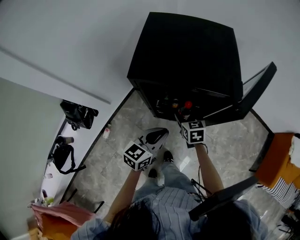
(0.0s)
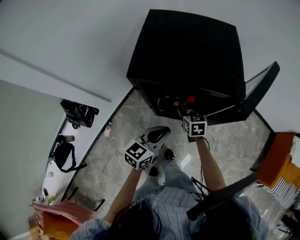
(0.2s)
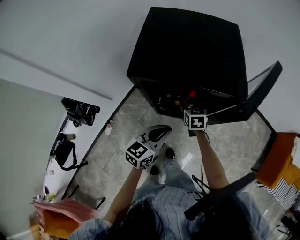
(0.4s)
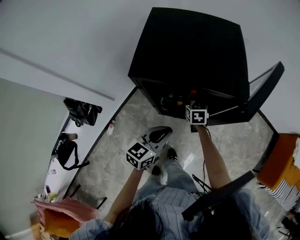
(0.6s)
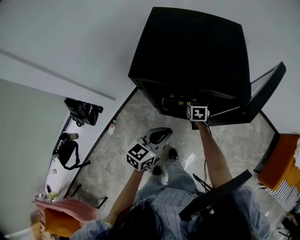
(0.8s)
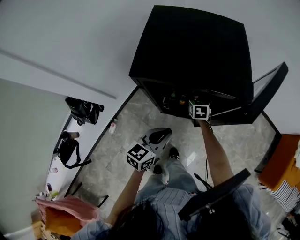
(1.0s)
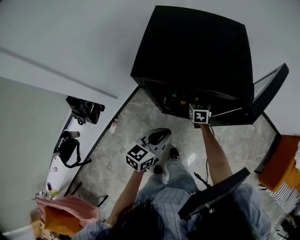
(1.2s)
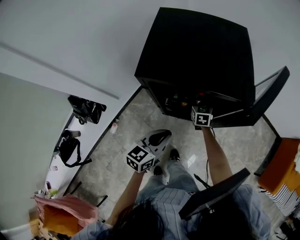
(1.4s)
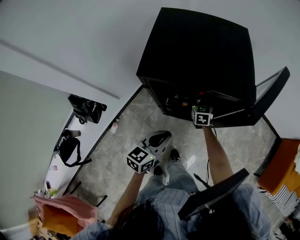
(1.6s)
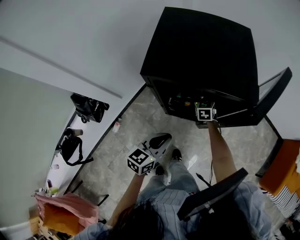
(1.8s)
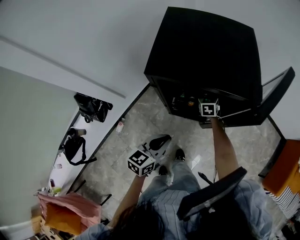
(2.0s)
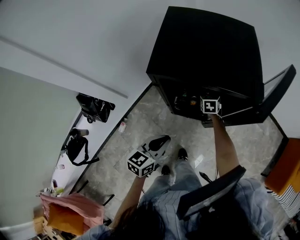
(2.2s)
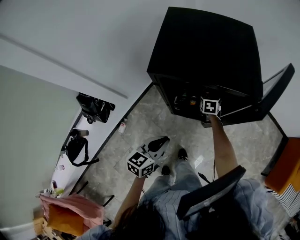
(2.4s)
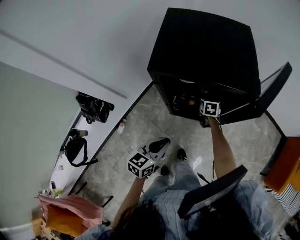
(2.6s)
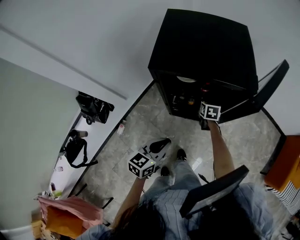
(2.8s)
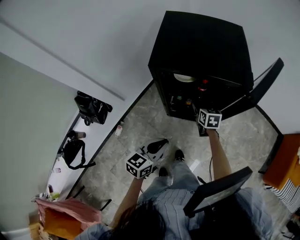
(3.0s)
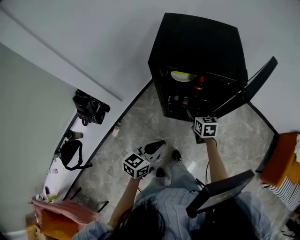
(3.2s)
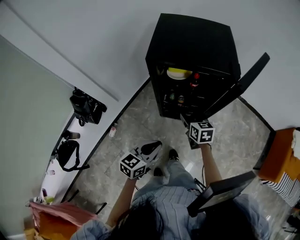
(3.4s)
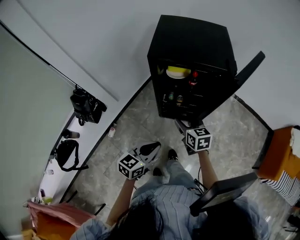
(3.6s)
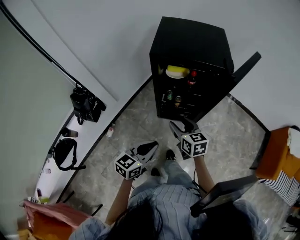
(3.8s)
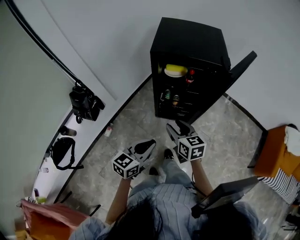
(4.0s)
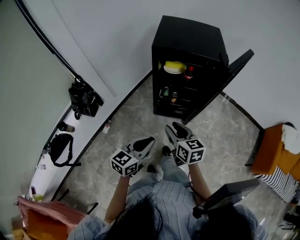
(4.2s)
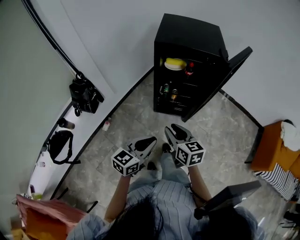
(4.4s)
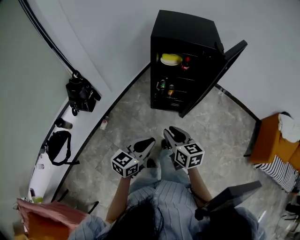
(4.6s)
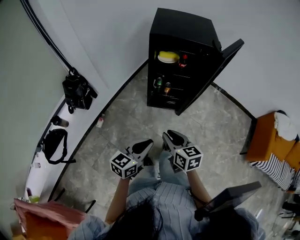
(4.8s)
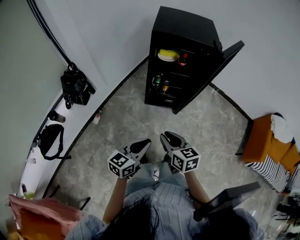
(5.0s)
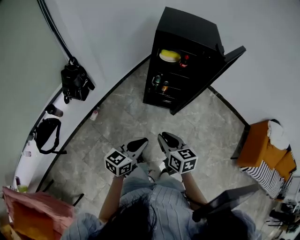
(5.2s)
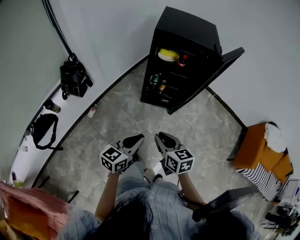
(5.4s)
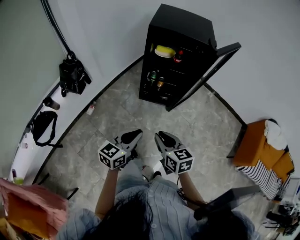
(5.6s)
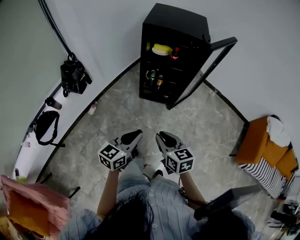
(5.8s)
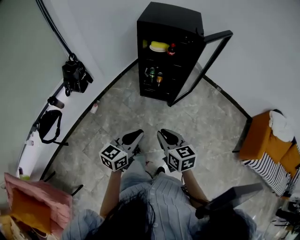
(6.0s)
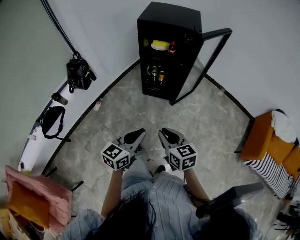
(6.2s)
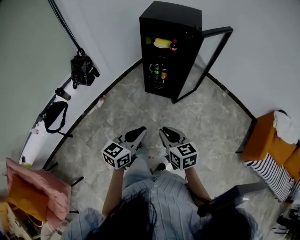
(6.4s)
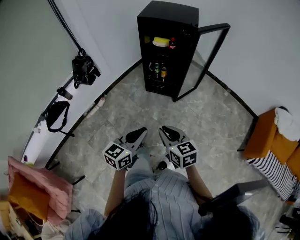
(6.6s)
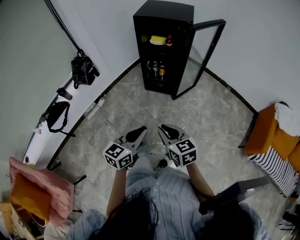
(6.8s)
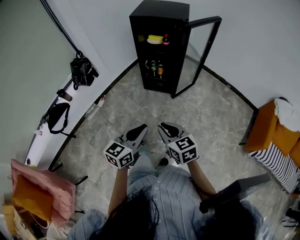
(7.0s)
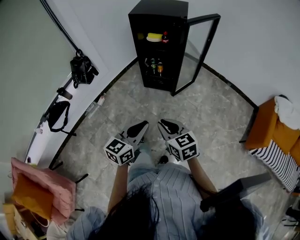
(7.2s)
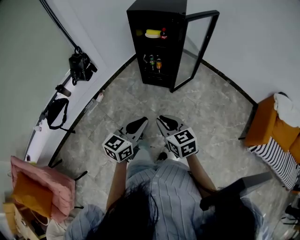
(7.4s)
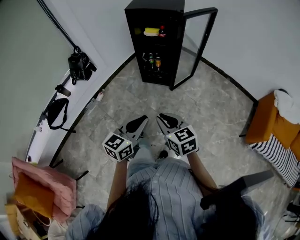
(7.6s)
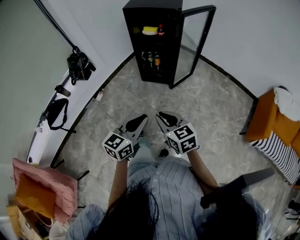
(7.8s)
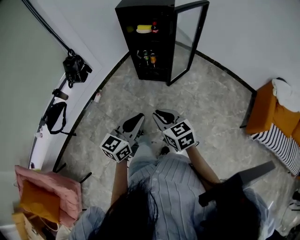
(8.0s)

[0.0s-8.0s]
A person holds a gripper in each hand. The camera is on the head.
0.0s to 1.6s: The right gripper is displaced forward and downward by some 15 cm.
1.6s to 3.2s: The left gripper moves backward, about 10 cm, while the right gripper moves backward and upward, roughly 15 cm.
3.2s to 4.8s: The left gripper is displaced backward by roughly 25 cm. The right gripper travels backward by about 40 cm, and closes its fingers.
4.8s to 6.4s: Both grippers move backward and to the right, about 20 cm.
6.4s to 8.0s: The two grippers go roughly 5 cm backward.

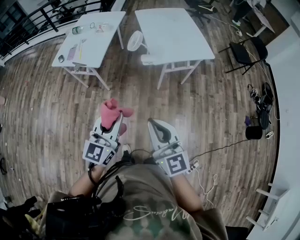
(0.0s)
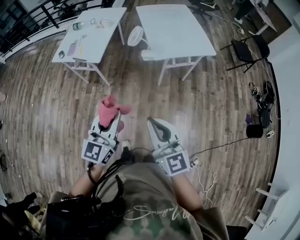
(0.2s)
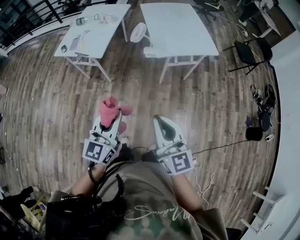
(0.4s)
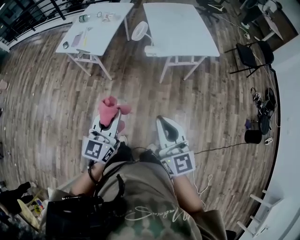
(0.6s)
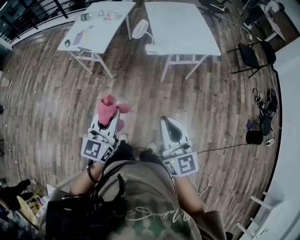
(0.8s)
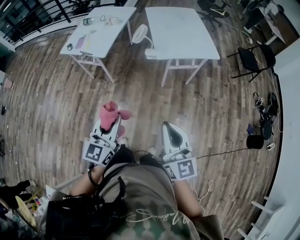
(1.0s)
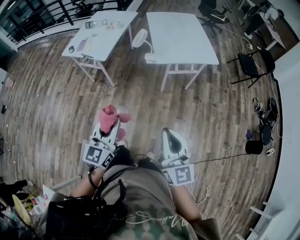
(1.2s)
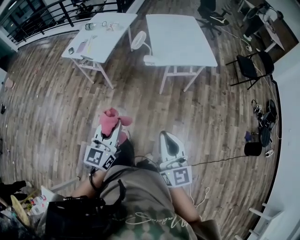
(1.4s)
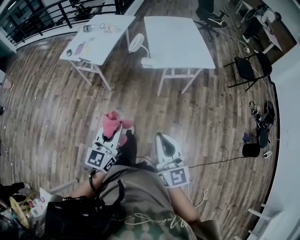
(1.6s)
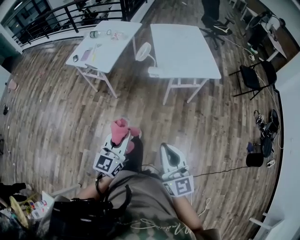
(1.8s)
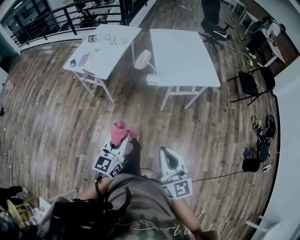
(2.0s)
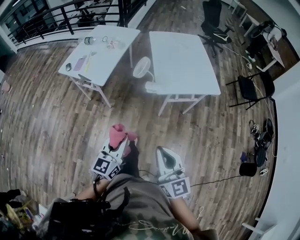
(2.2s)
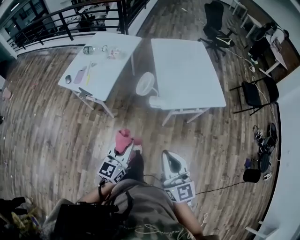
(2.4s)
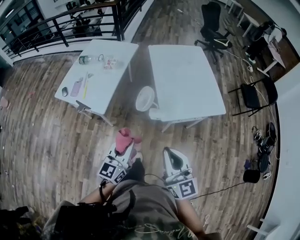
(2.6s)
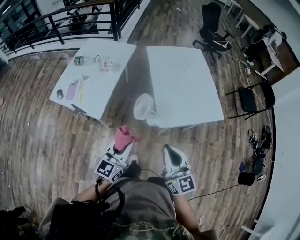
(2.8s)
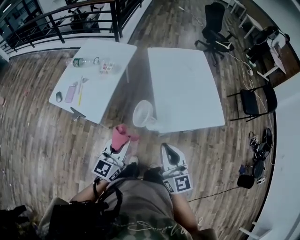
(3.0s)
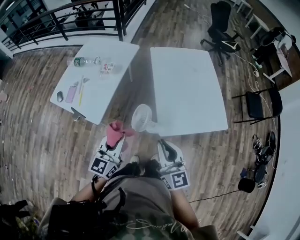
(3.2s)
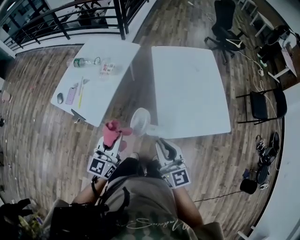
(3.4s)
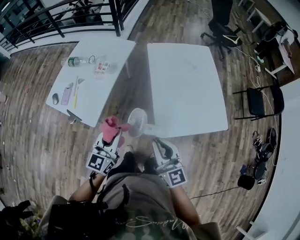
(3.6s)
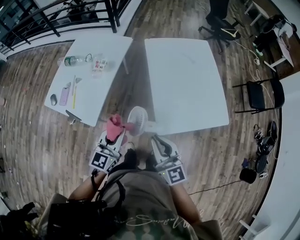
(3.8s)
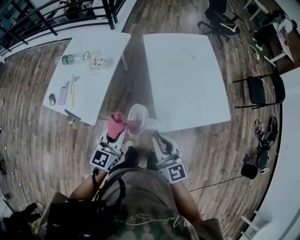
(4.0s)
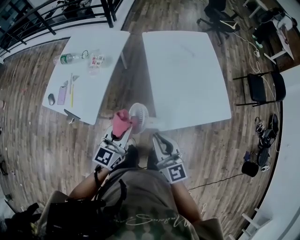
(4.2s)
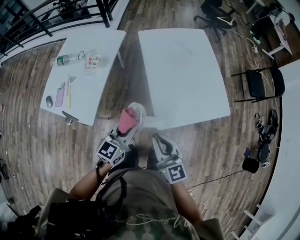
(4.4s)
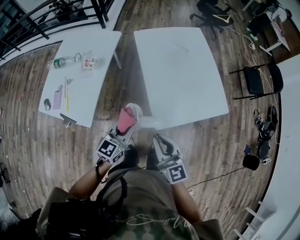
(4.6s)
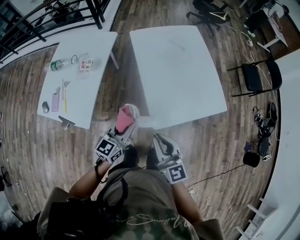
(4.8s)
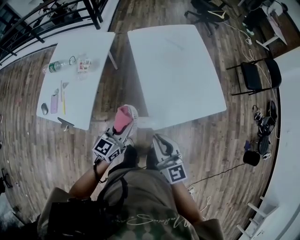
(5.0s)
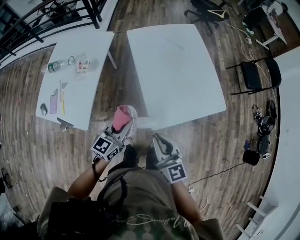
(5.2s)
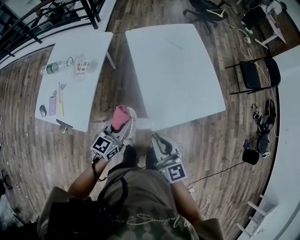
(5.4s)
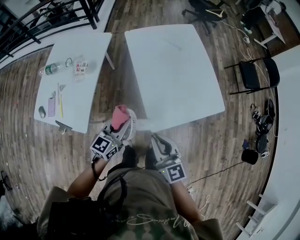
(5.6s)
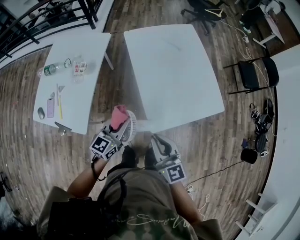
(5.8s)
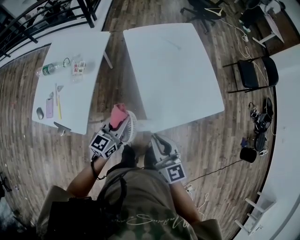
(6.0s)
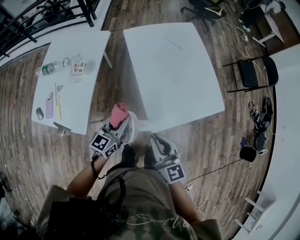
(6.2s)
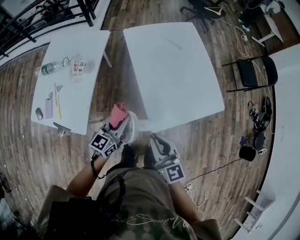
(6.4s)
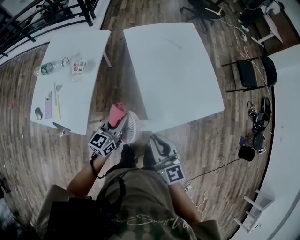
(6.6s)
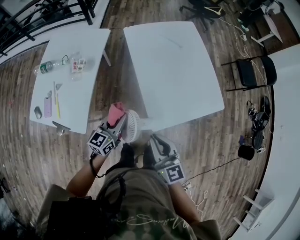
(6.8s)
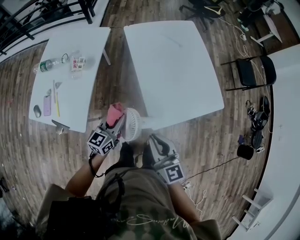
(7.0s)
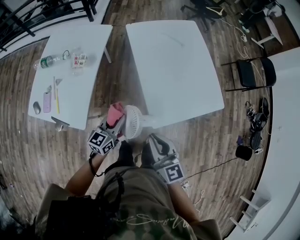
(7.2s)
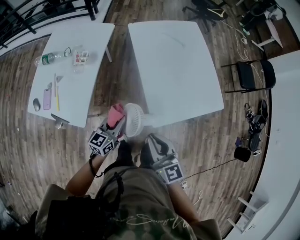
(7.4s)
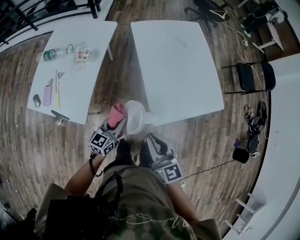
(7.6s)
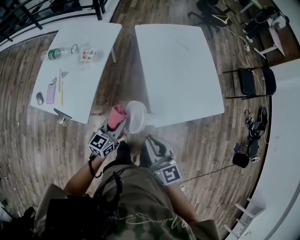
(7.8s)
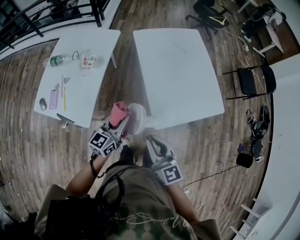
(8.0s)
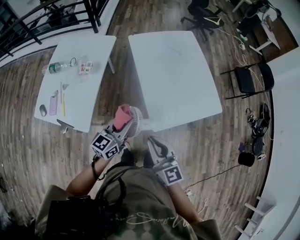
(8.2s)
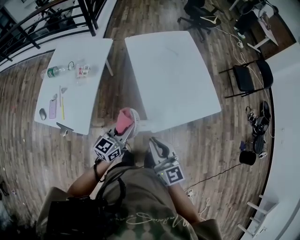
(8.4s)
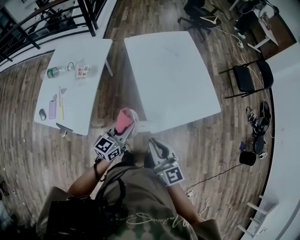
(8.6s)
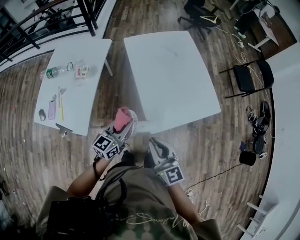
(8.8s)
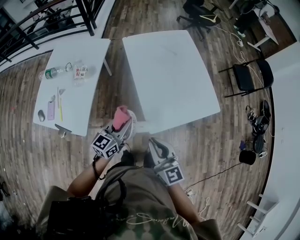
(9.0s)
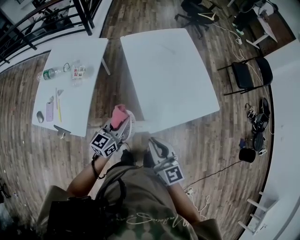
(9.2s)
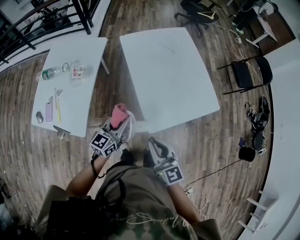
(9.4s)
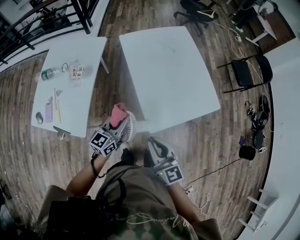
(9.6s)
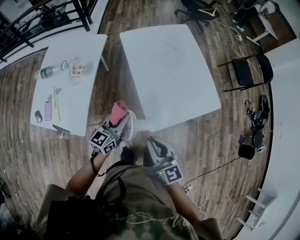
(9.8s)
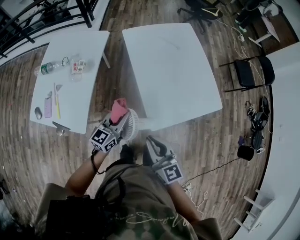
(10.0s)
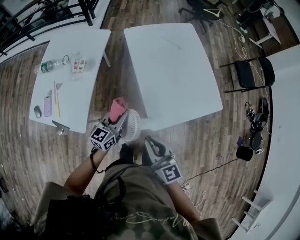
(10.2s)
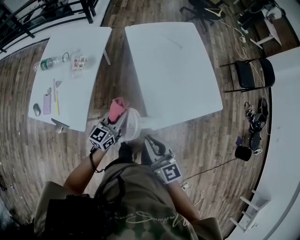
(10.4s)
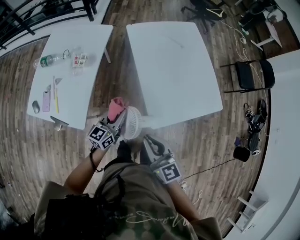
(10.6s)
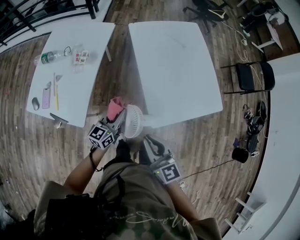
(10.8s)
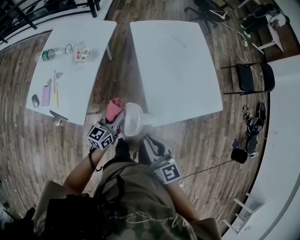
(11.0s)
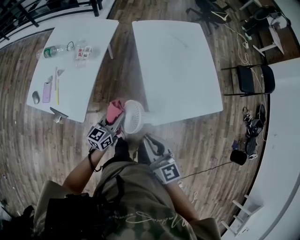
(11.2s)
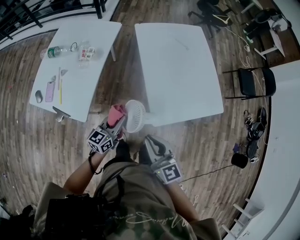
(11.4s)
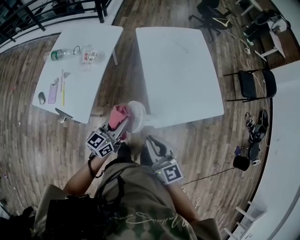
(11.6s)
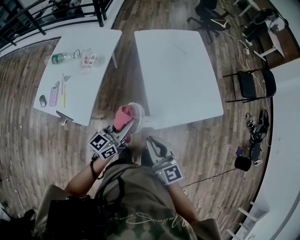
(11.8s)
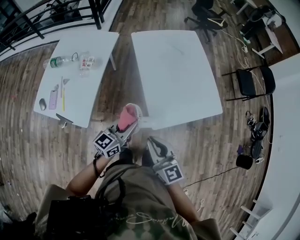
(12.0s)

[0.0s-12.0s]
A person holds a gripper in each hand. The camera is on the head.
0.0s to 1.6s: The right gripper travels to the right and backward by roughly 15 cm, while the left gripper shifts some 10 cm backward and to the right.
1.6s to 3.0s: The two grippers travel together, forward, roughly 40 cm.
3.0s to 4.4s: The left gripper is displaced forward, to the right and downward by roughly 15 cm; the right gripper goes about 10 cm forward and downward.
4.4s to 6.0s: The left gripper shifts about 5 cm forward.
6.0s to 7.6s: The left gripper moves downward and backward, about 10 cm; the right gripper is displaced to the left by some 5 cm.
7.6s to 9.0s: The left gripper travels upward and to the right by roughly 10 cm.
9.0s to 10.4s: The left gripper moves approximately 5 cm.
10.4s to 12.0s: The left gripper heads backward and upward, covering roughly 10 cm.

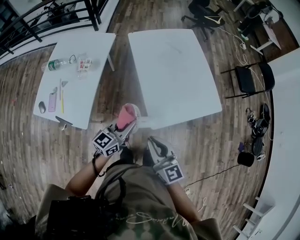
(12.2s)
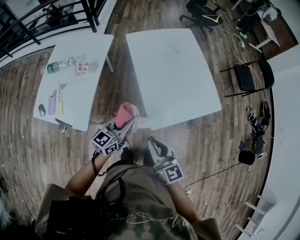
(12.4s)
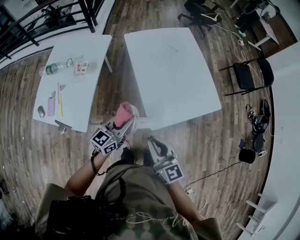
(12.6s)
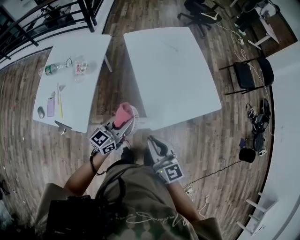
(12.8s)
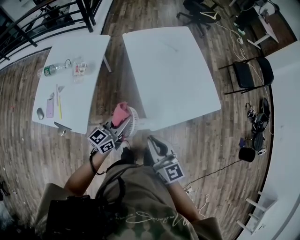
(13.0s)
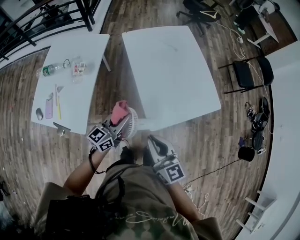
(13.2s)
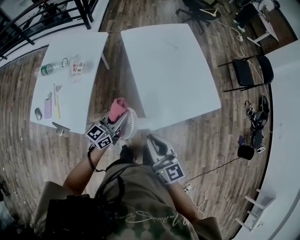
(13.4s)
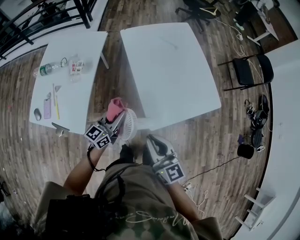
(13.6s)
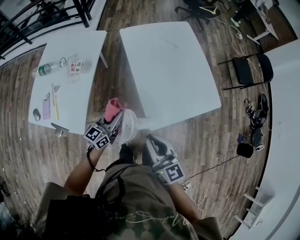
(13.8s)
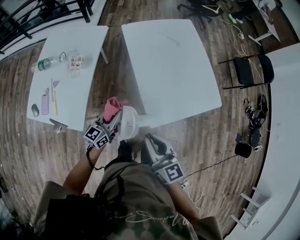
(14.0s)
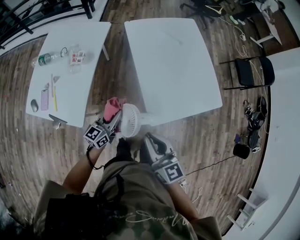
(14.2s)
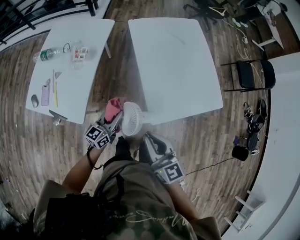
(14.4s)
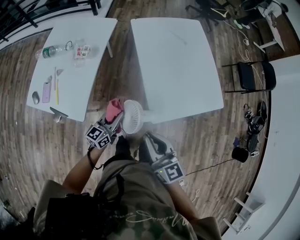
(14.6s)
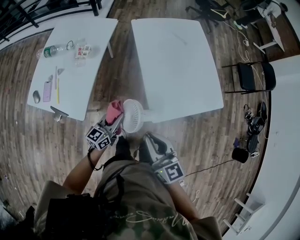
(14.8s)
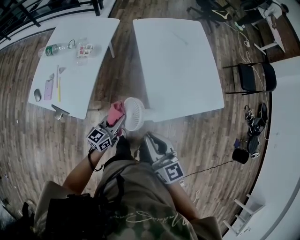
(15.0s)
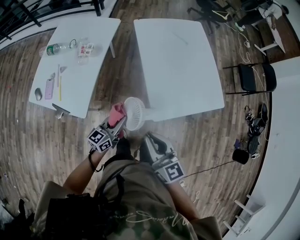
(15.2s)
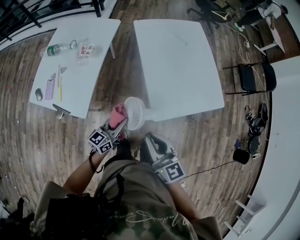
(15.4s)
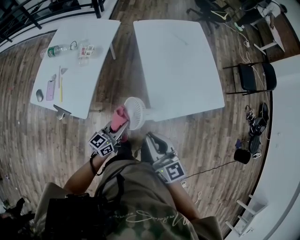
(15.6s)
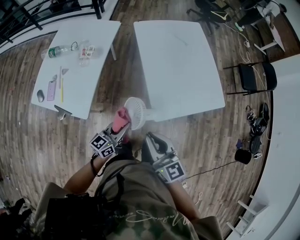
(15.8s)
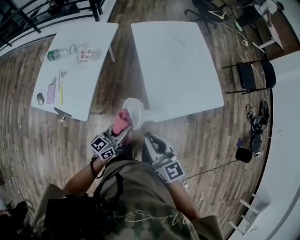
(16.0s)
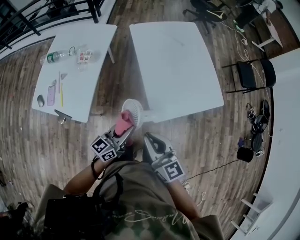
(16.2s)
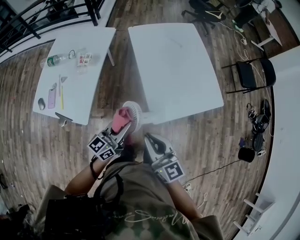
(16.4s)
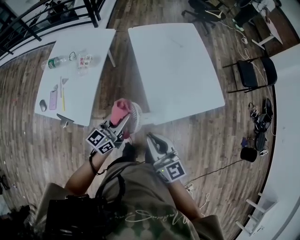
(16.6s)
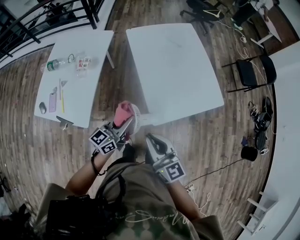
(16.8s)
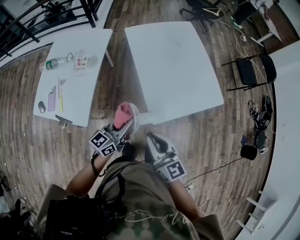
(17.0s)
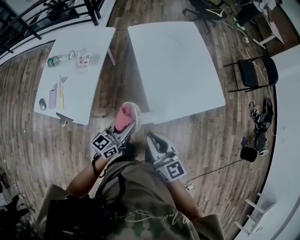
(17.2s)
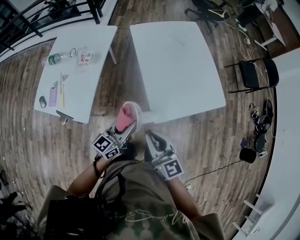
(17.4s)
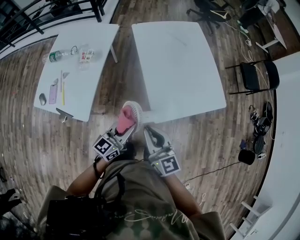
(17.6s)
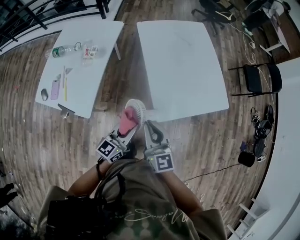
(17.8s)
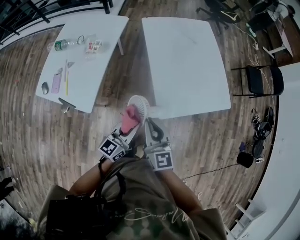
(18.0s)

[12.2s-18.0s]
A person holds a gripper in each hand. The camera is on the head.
12.2s to 13.6s: The left gripper travels forward by some 5 cm.
13.6s to 15.0s: The right gripper shifts by about 5 cm; the left gripper is displaced backward and downward by about 10 cm.
15.0s to 16.6s: The left gripper goes roughly 10 cm upward.
16.6s to 18.0s: The right gripper shifts by approximately 5 cm; the left gripper is displaced backward by roughly 5 cm.
